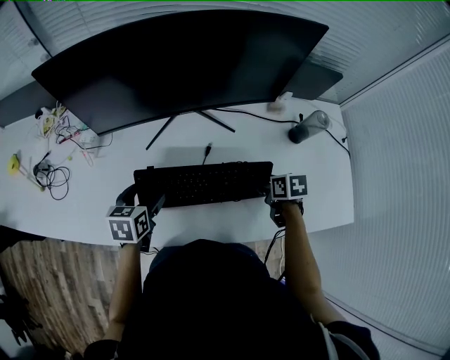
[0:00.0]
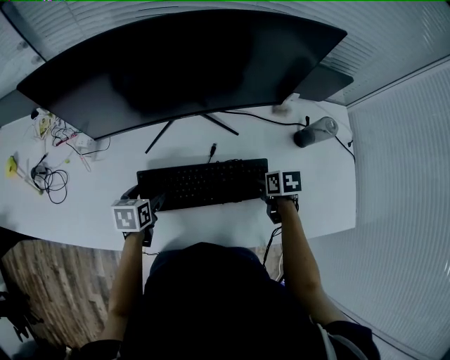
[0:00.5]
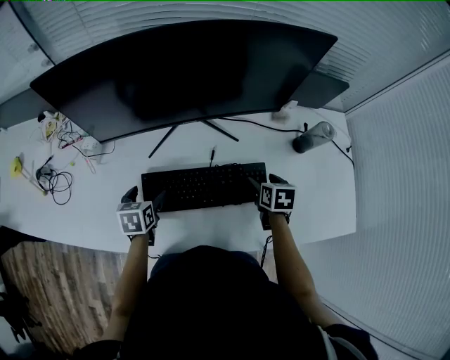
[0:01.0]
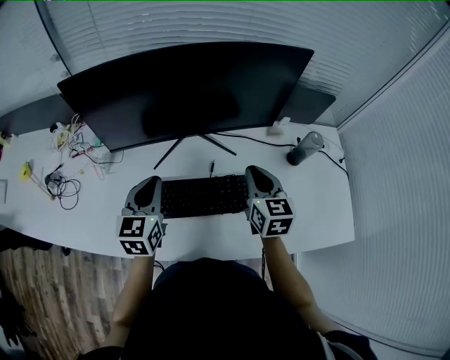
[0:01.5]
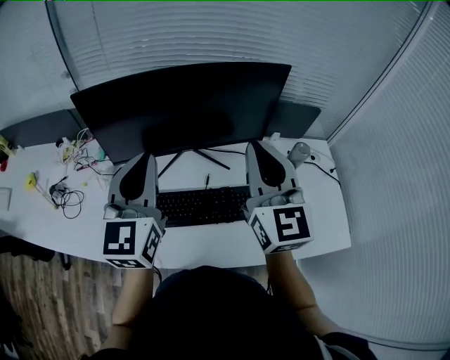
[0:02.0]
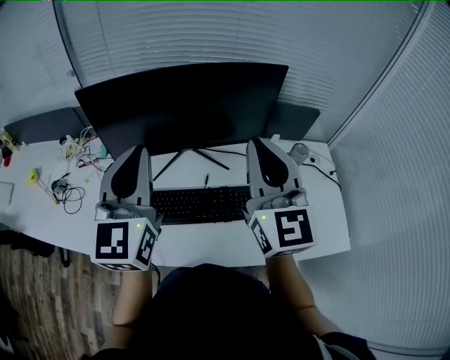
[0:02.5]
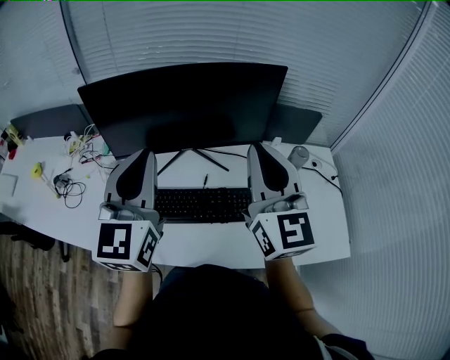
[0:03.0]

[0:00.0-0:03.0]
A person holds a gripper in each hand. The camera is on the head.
0:00.0 to 0:01.5: Both grippers travel together upward, some 15 cm. The right gripper angles its fingers upward, by approximately 40 degrees, and closes up. The left gripper rotates approximately 30 degrees, and closes its fingers.
0:01.5 to 0:03.0: Both grippers move upward, approximately 25 cm. The right gripper angles its fingers upward, by some 30 degrees. The left gripper rotates roughly 30 degrees.

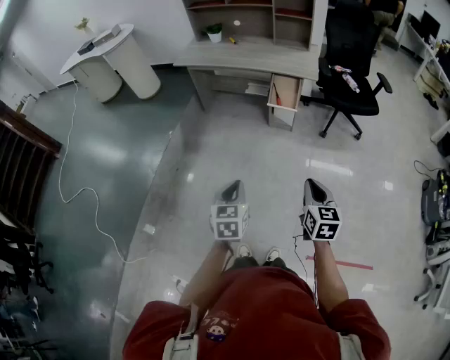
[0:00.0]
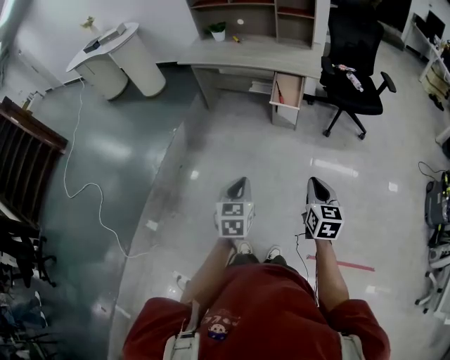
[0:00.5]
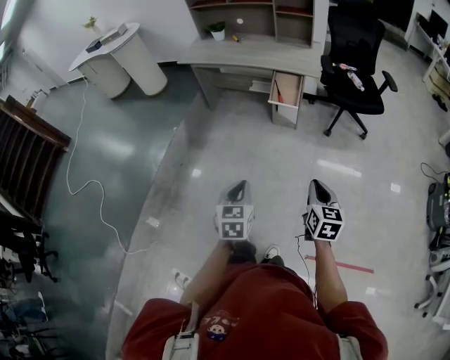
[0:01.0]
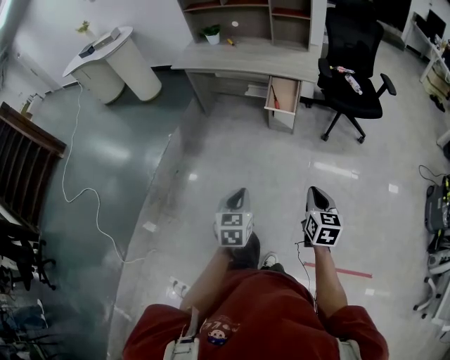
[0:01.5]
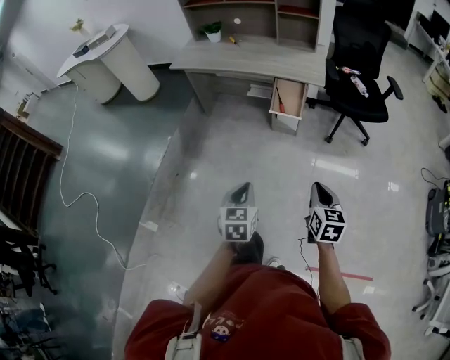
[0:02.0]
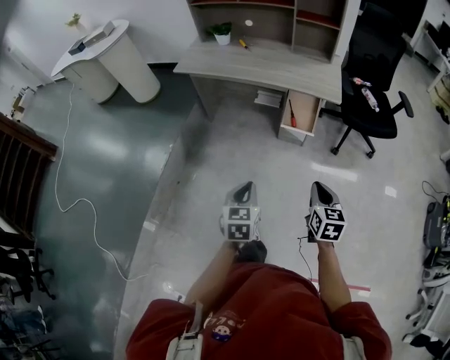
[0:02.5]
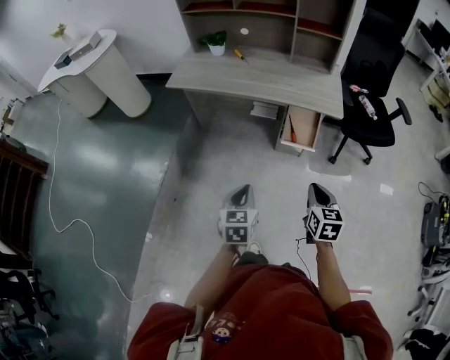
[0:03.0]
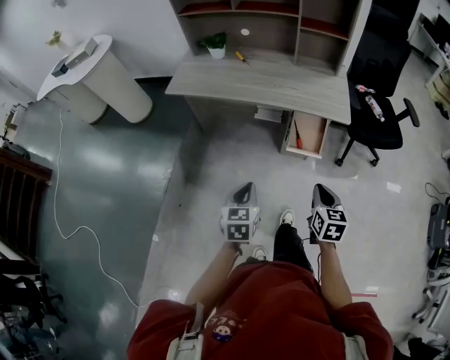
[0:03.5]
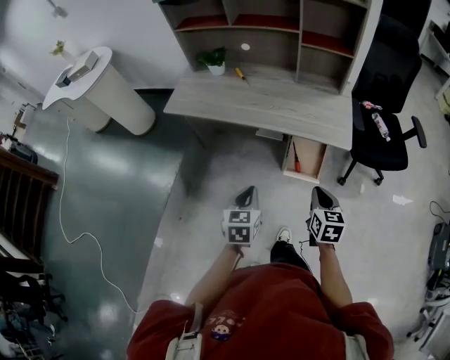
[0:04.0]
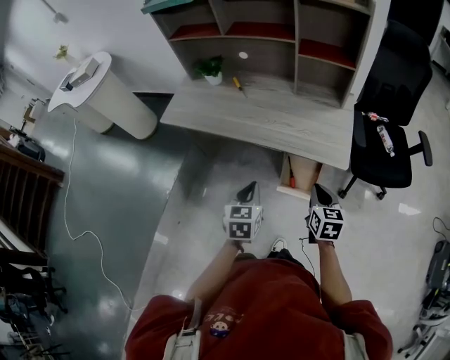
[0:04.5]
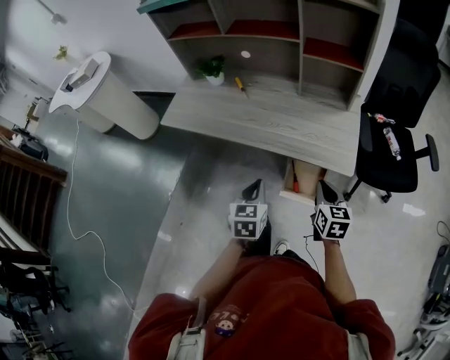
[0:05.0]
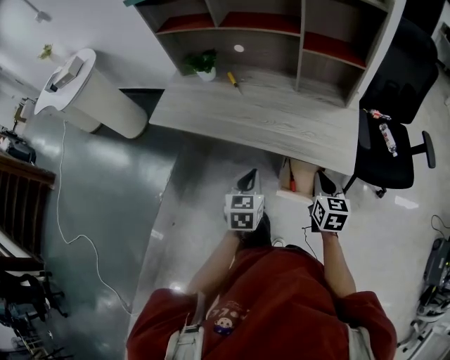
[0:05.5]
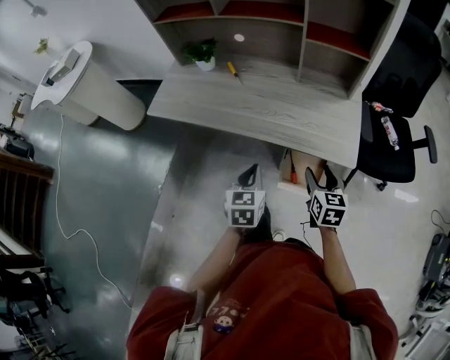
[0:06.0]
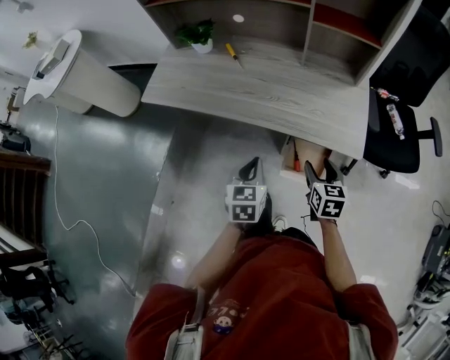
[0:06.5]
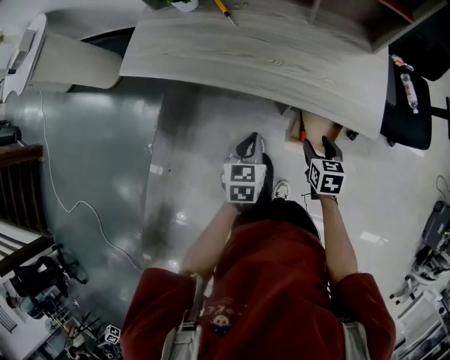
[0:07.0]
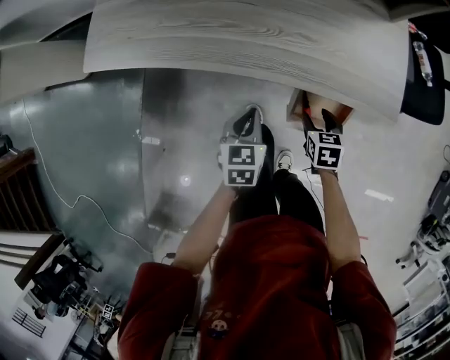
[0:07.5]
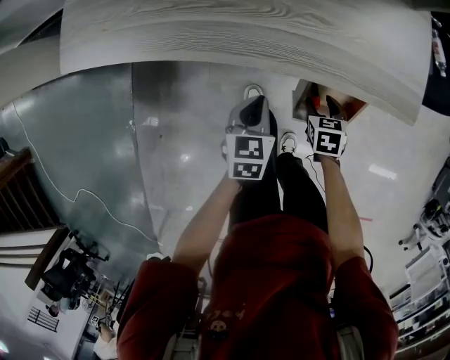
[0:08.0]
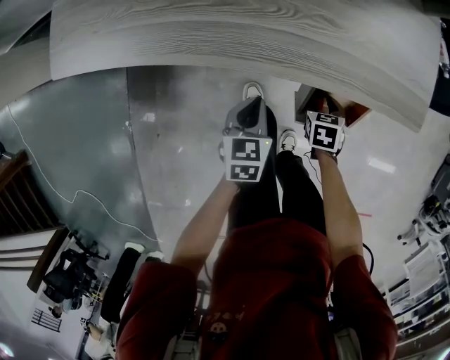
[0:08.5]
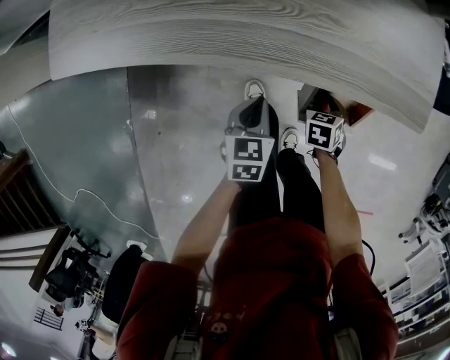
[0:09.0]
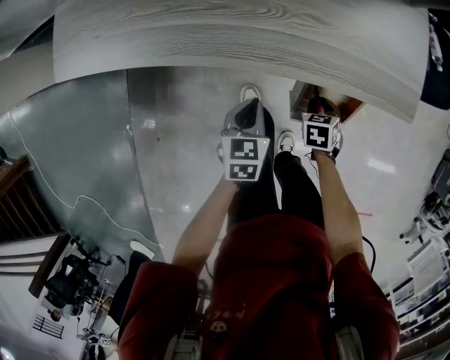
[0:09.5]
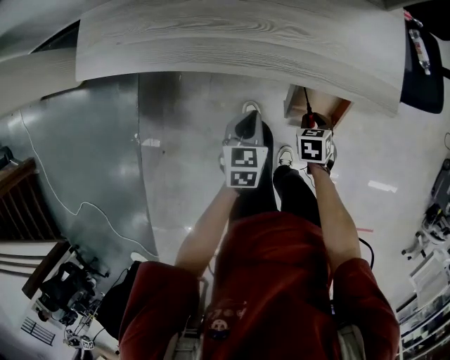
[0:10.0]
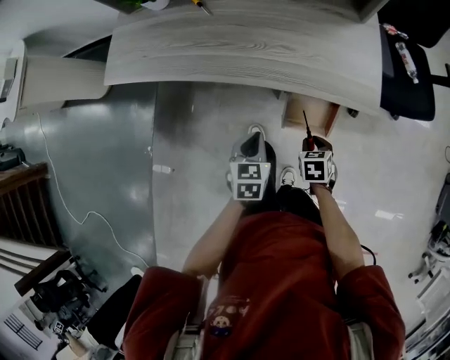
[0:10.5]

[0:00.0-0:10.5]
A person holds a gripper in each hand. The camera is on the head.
0:00.0 to 0:02.0: The left gripper is displaced forward and to the right by approximately 15 cm, while the right gripper moves forward, roughly 10 cm.
0:02.0 to 0:04.0: The pair of grippers is taken forward, approximately 50 cm.
0:04.0 to 0:06.5: The two grippers go roughly 20 cm forward. The right gripper opens its fingers.
0:06.5 to 0:08.5: The right gripper shifts about 35 cm downward, and tips its fingers downward by about 30 degrees. Meanwhile the left gripper moves downward and forward, approximately 30 cm.
0:08.5 to 0:10.5: The grippers both shift upward, backward and to the right by some 15 cm. The right gripper closes.

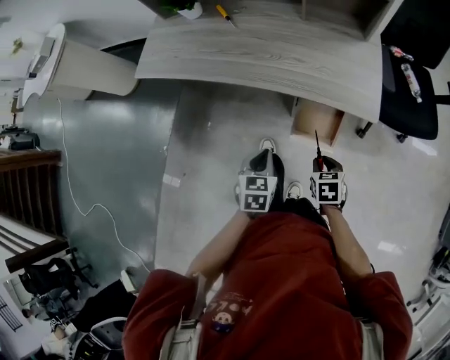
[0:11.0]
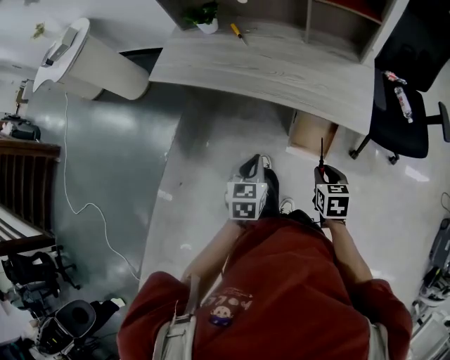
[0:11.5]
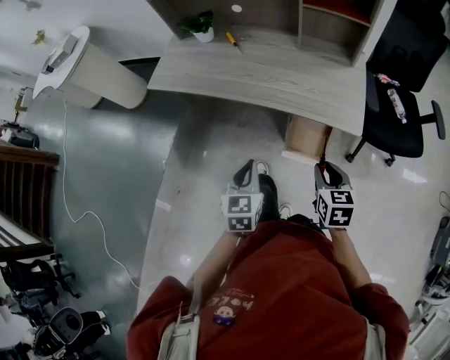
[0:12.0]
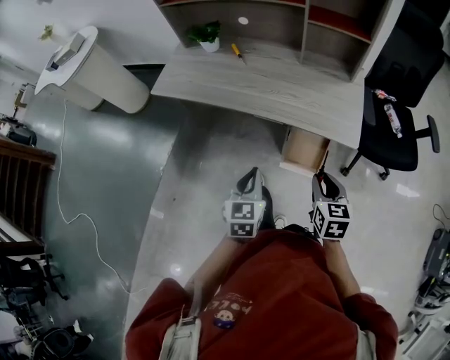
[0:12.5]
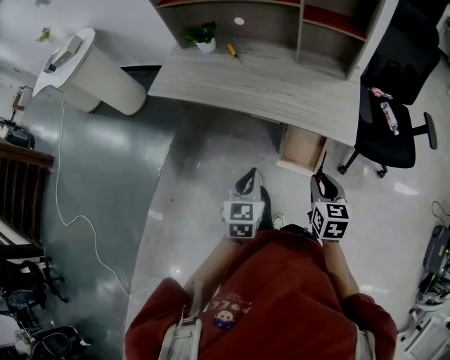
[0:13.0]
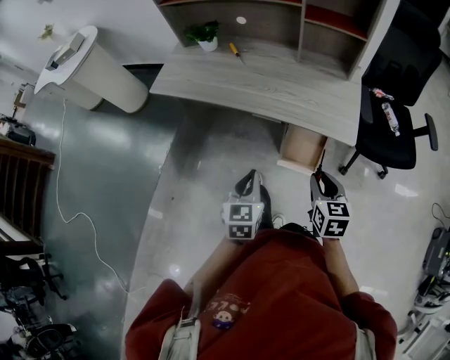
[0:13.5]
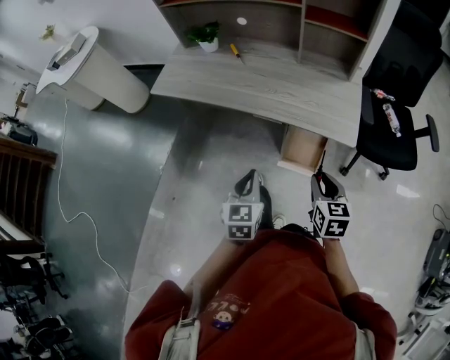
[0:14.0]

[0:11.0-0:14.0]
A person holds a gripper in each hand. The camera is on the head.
0:11.0 to 0:12.5: The grippers both shift upward by approximately 15 cm. The right gripper rotates some 30 degrees.
0:12.5 to 0:14.0: The grippers stay close to where they were, moving slightly.

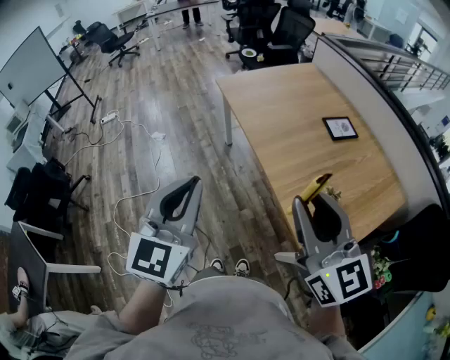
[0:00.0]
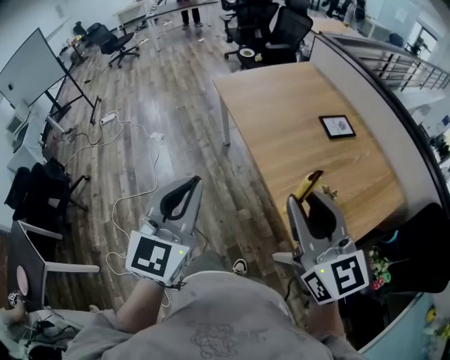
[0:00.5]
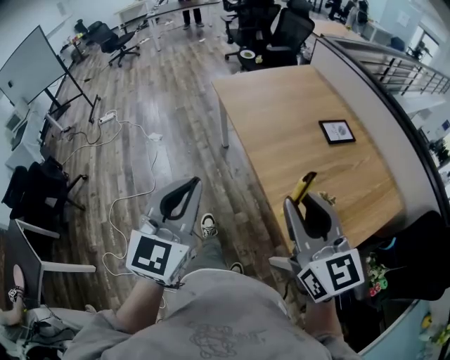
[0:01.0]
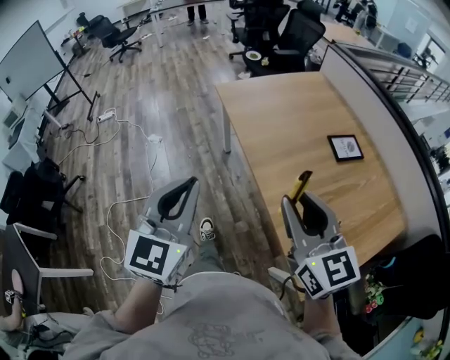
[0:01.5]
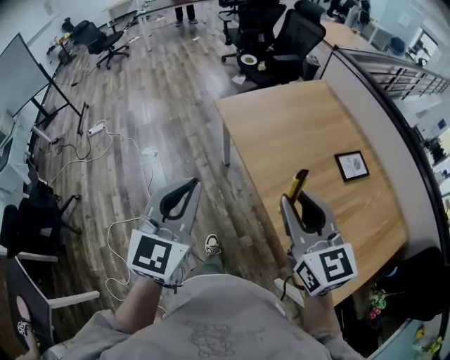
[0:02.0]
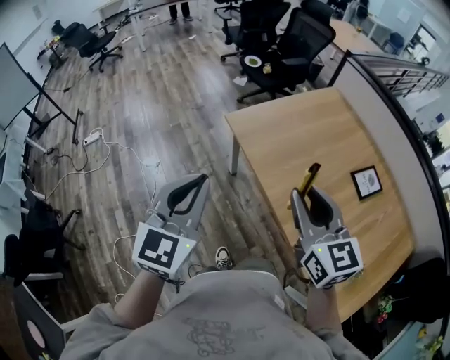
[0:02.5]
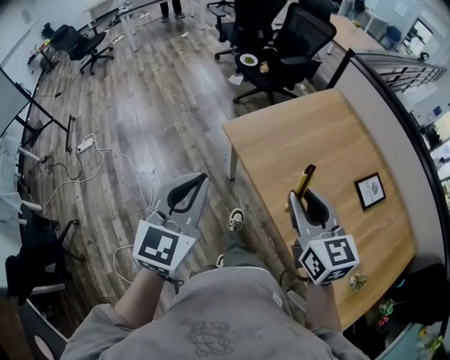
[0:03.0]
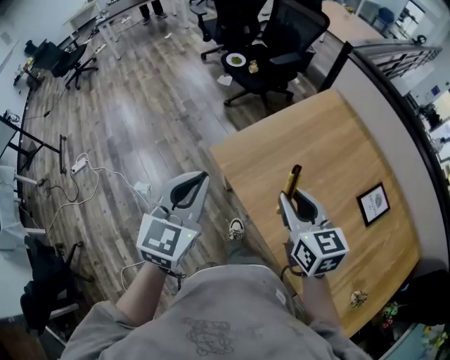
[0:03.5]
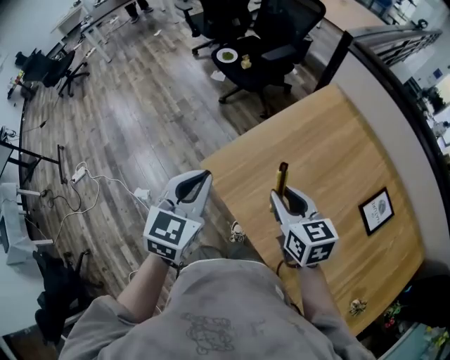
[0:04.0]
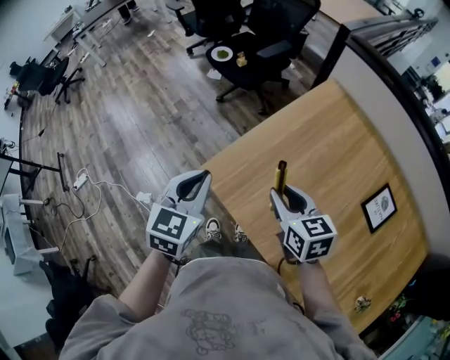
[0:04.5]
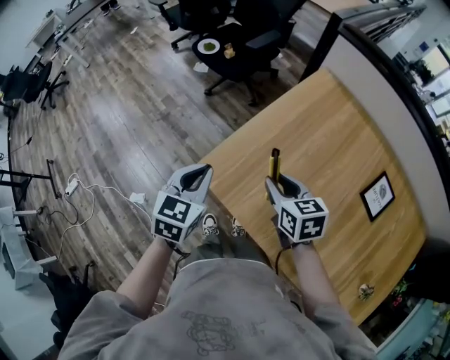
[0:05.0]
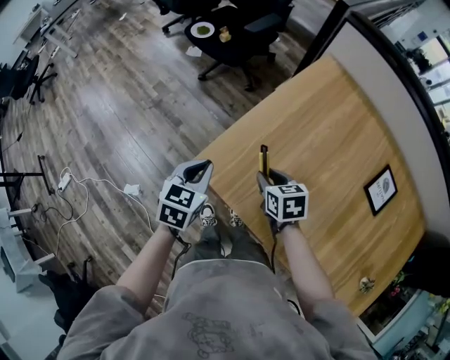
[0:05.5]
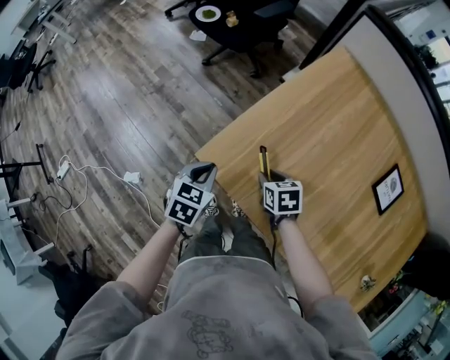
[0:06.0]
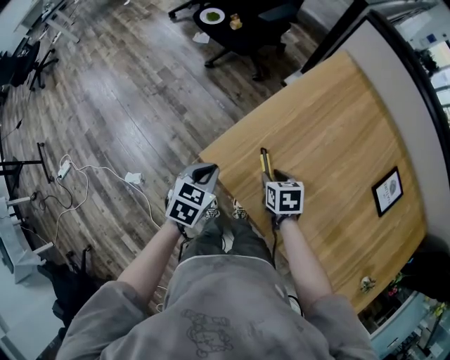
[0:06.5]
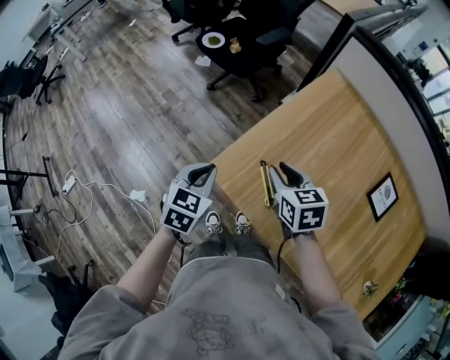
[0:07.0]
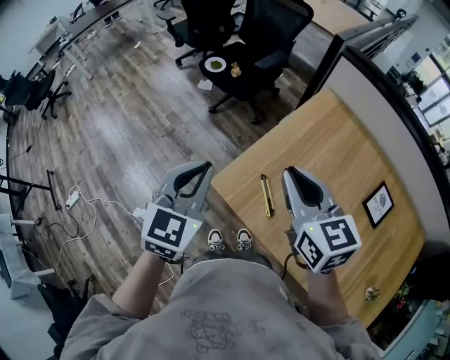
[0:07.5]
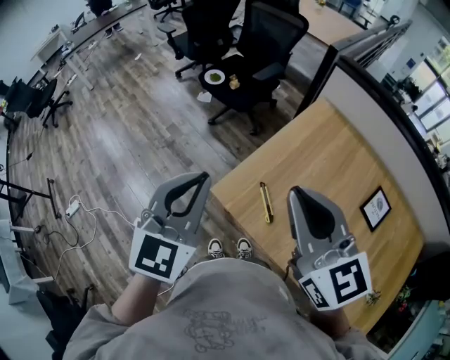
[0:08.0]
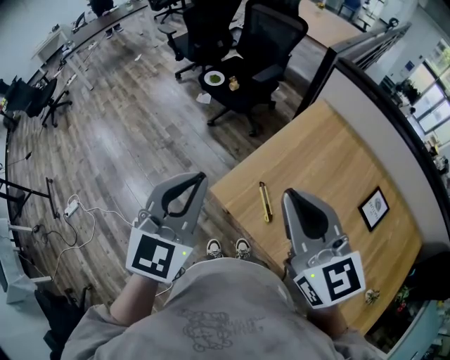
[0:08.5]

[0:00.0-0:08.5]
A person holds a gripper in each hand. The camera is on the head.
0:00.0 to 0:02.0: Both grippers move forward, approximately 30 cm.
0:02.0 to 0:04.0: The pair of grippers is taken forward, roughly 50 cm. The right gripper rotates about 30 degrees. The left gripper changes its angle by some 20 degrees.
0:04.0 to 0:06.5: Both grippers move downward, approximately 25 cm. The left gripper turns by approximately 30 degrees, while the right gripper points its fingers roughly 30 degrees further downward.
0:06.5 to 0:08.5: Both grippers travel together upward, some 40 cm. The right gripper tips its fingers upward by roughly 50 degrees, and closes; the left gripper angles its fingers upward, by about 30 degrees.

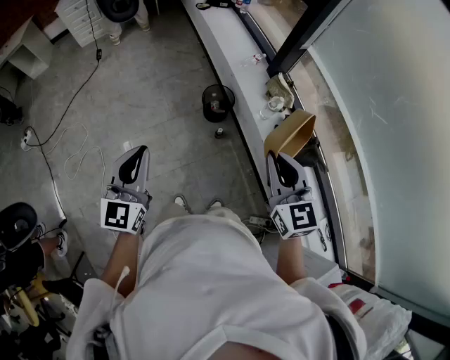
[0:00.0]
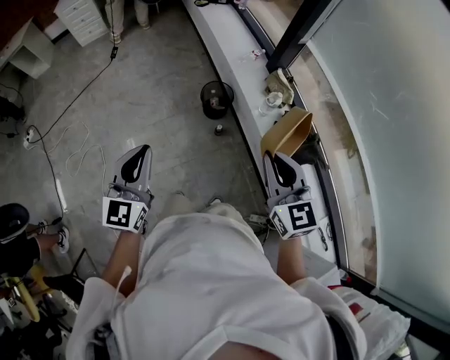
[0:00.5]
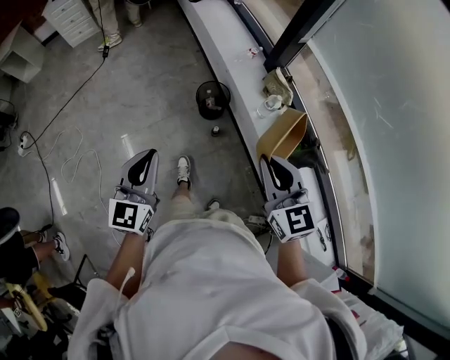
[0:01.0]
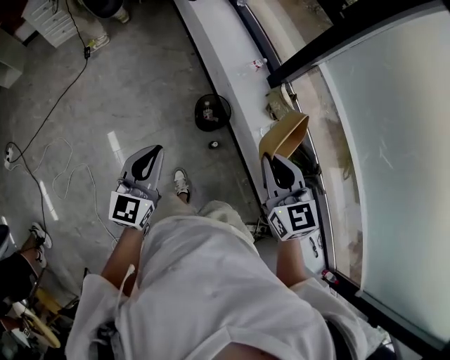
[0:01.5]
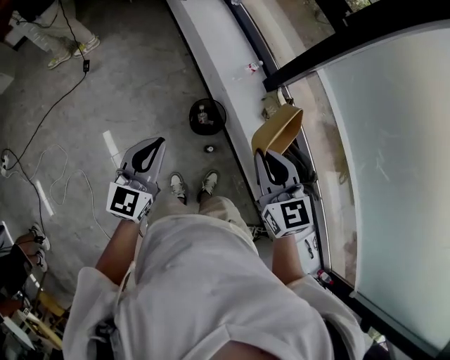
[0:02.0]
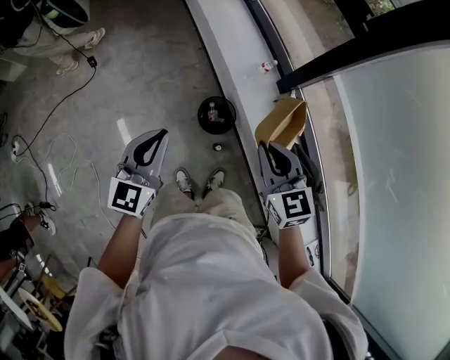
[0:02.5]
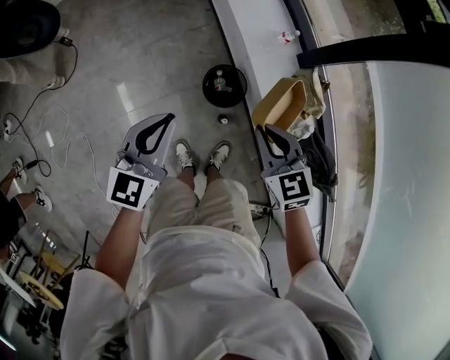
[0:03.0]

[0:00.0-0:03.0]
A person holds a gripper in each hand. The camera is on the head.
0:00.0 to 0:01.5: The grippers both shift forward by some 25 cm.
0:01.5 to 0:03.0: The right gripper heads downward and forward, covering some 25 cm, while the left gripper heads forward and downward, covering about 20 cm.
